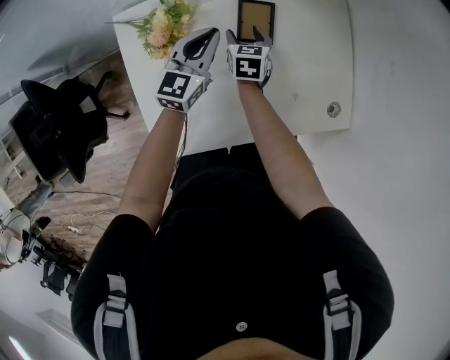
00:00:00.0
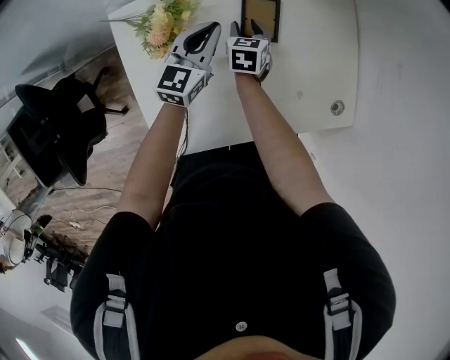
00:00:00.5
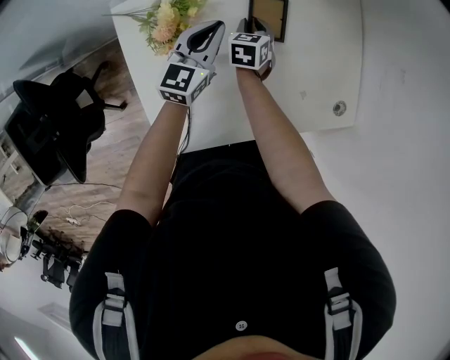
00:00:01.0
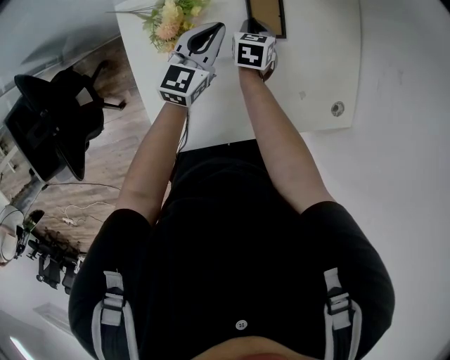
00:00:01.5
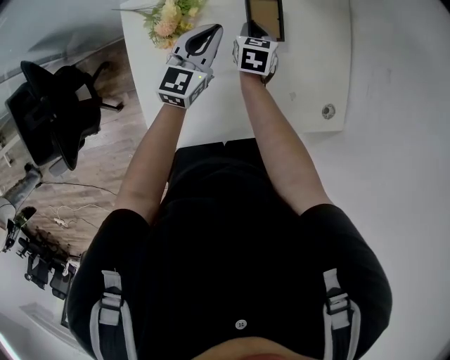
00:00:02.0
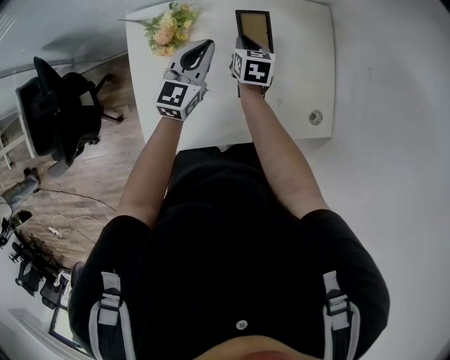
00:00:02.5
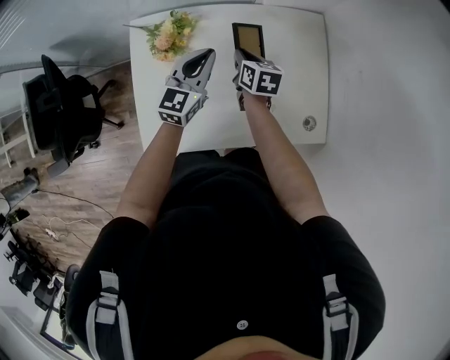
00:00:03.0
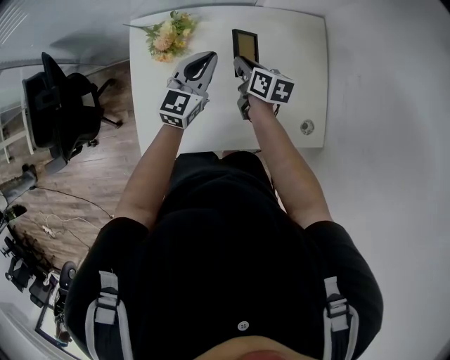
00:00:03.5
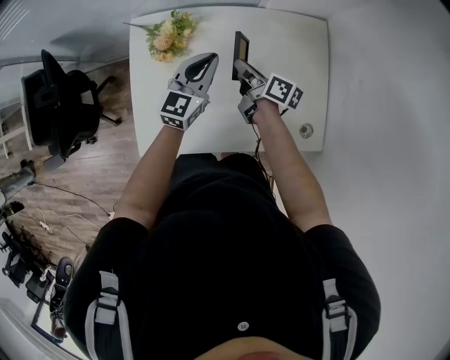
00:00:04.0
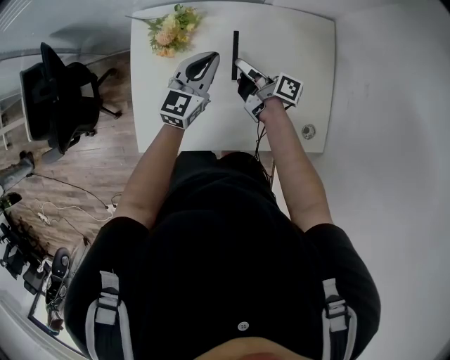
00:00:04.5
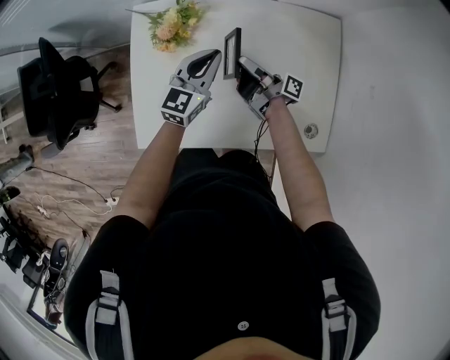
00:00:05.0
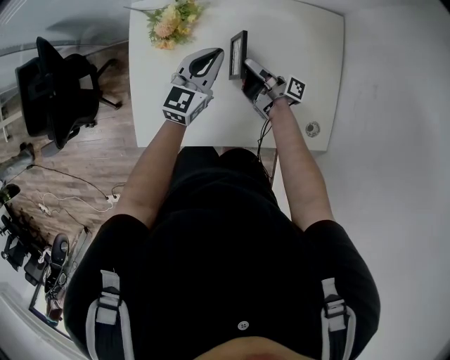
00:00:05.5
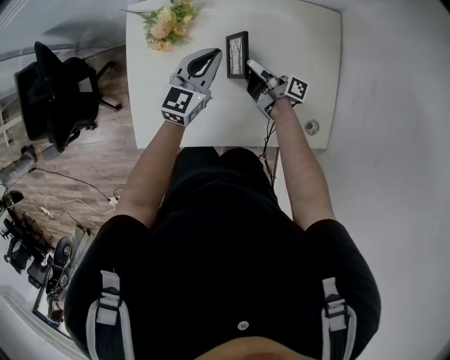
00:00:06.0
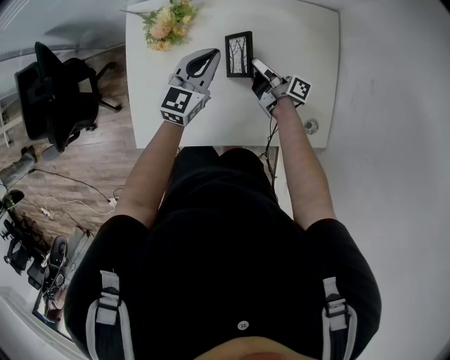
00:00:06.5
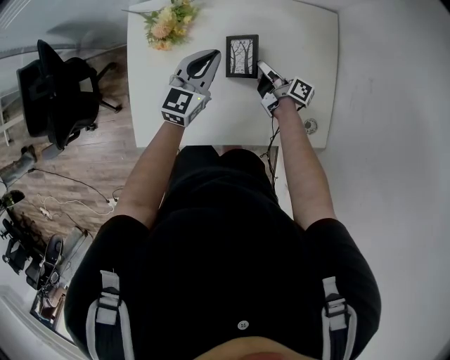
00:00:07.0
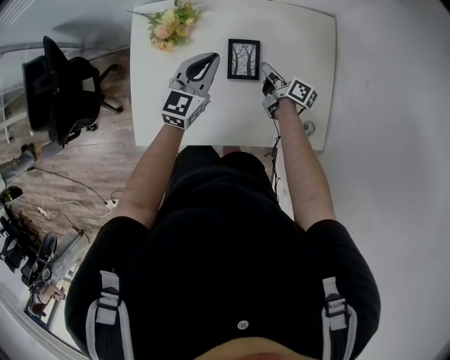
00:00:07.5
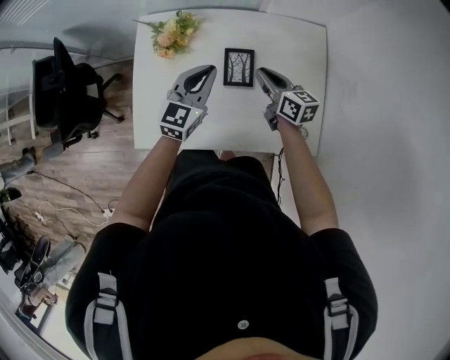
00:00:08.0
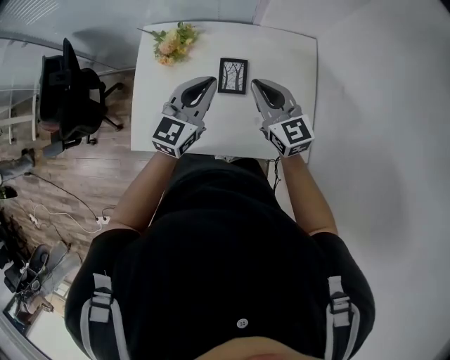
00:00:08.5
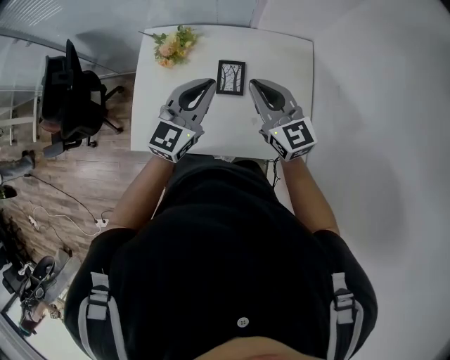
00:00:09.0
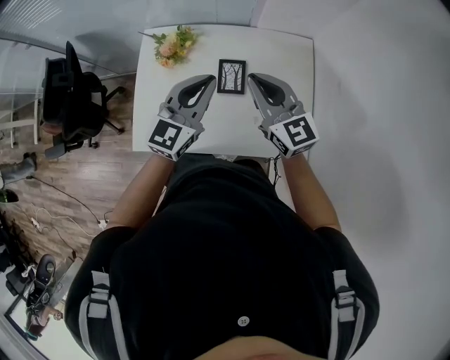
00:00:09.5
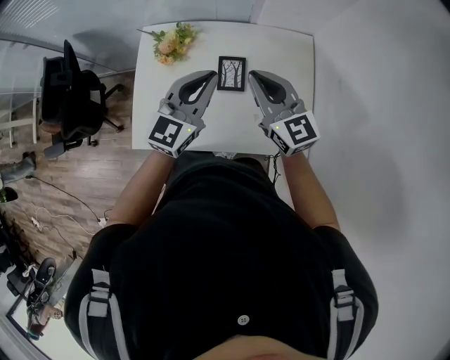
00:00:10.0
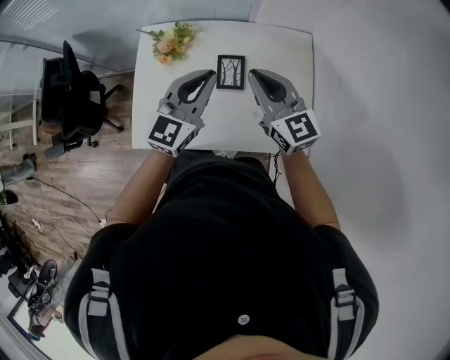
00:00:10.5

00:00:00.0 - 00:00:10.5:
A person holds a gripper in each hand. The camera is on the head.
00:00:00.0 - 00:00:02.0: The right gripper closes its fingers.
00:00:02.0 - 00:00:04.0: The left gripper travels backward by some 5 cm; the right gripper moves upward and backward, about 15 cm, and turns by roughly 60 degrees.
00:00:04.0 - 00:00:06.5: The right gripper shifts approximately 10 cm downward and to the right, and rotates some 20 degrees.
00:00:06.5 - 00:00:08.5: The right gripper heads upward, covering some 25 cm, and rotates around the line of its fingers by approximately 80 degrees, counterclockwise from behind; the left gripper goes approximately 15 cm upward and backward.
00:00:08.5 - 00:00:10.5: Both grippers move upward, roughly 5 cm.

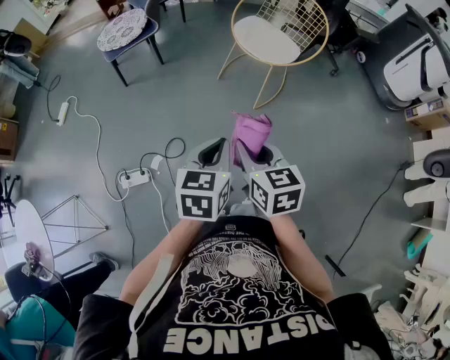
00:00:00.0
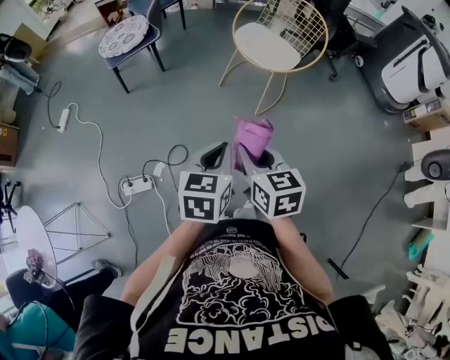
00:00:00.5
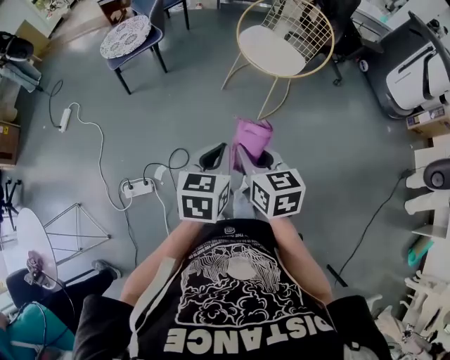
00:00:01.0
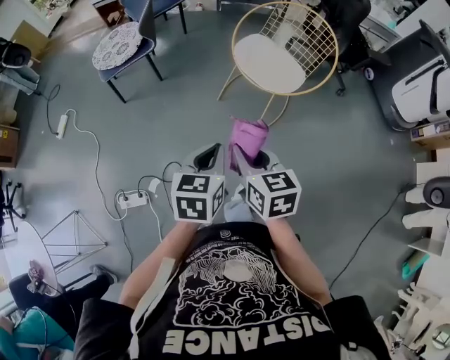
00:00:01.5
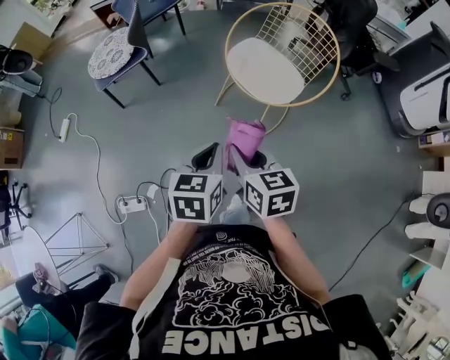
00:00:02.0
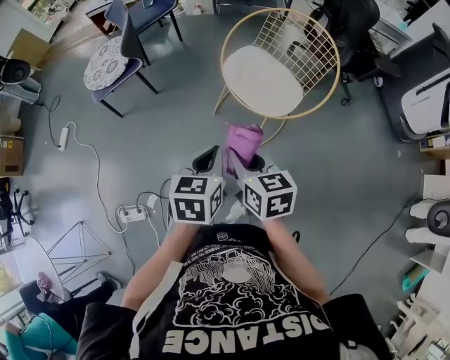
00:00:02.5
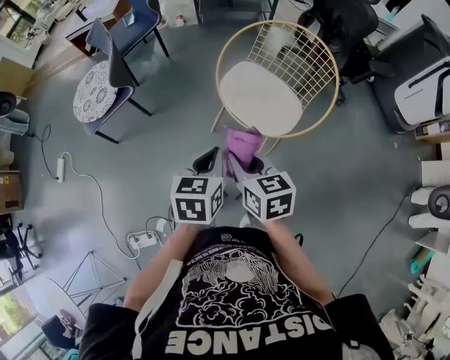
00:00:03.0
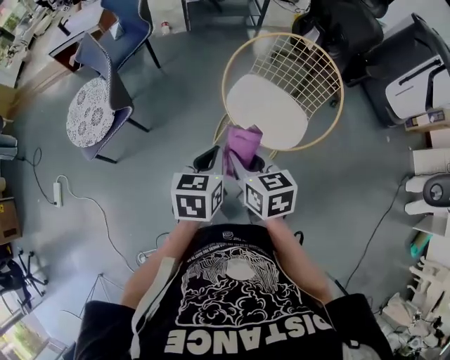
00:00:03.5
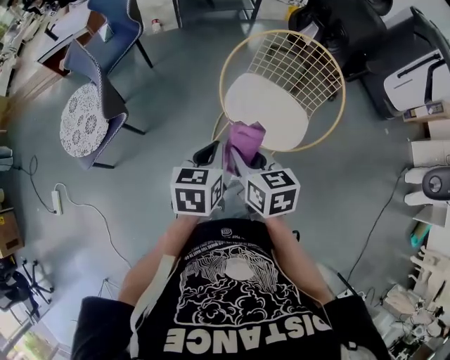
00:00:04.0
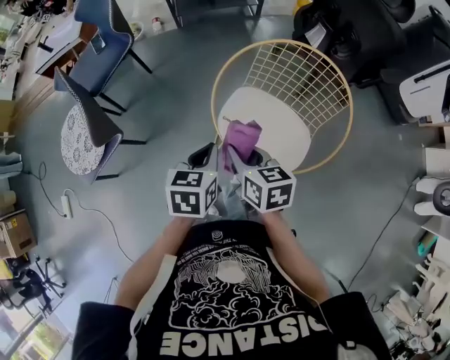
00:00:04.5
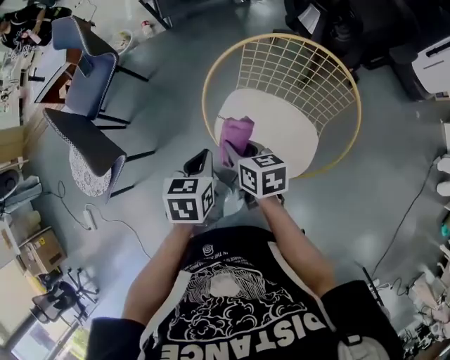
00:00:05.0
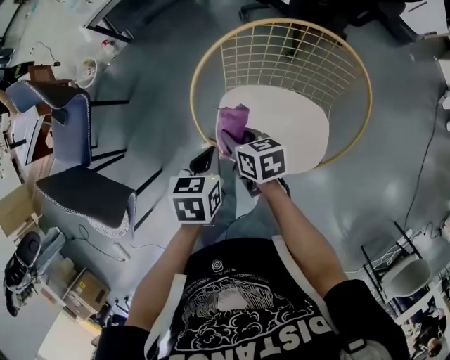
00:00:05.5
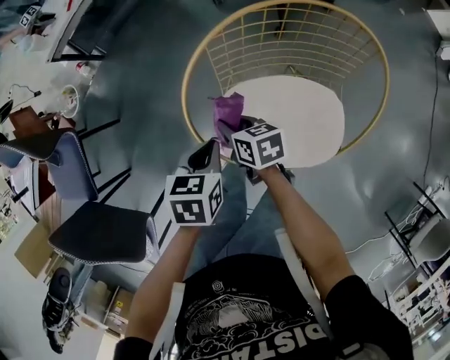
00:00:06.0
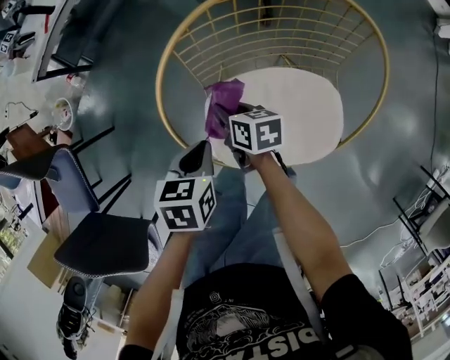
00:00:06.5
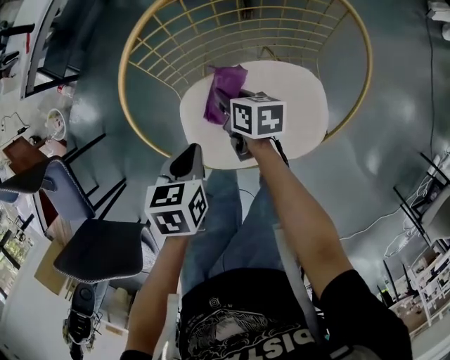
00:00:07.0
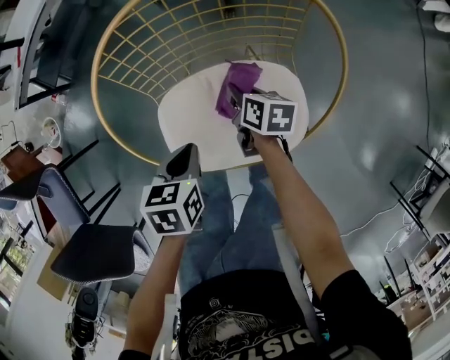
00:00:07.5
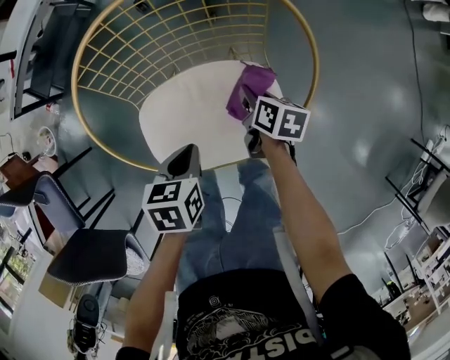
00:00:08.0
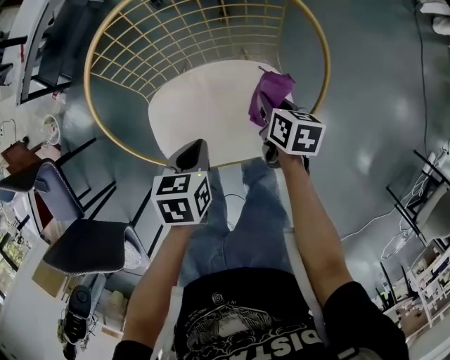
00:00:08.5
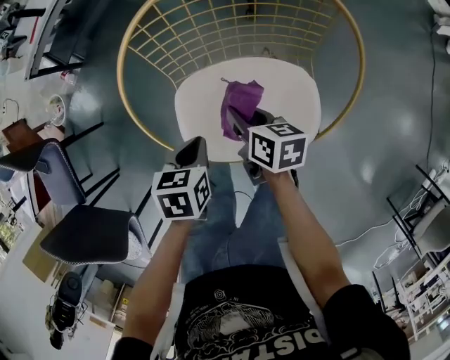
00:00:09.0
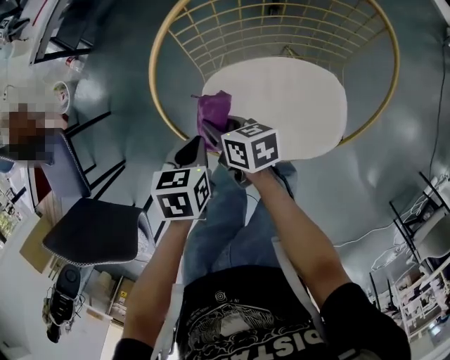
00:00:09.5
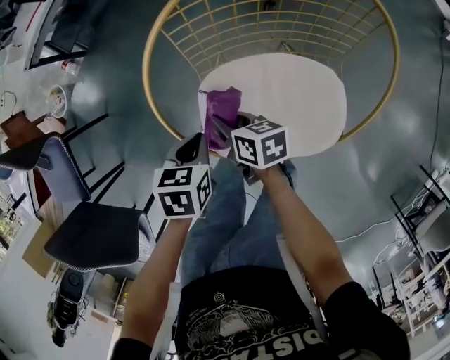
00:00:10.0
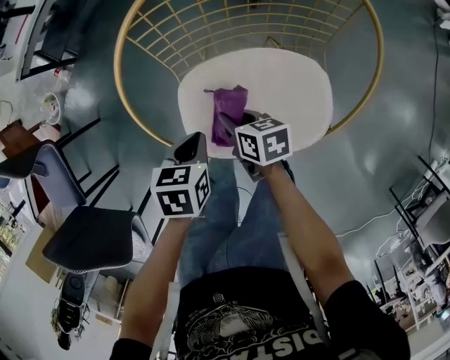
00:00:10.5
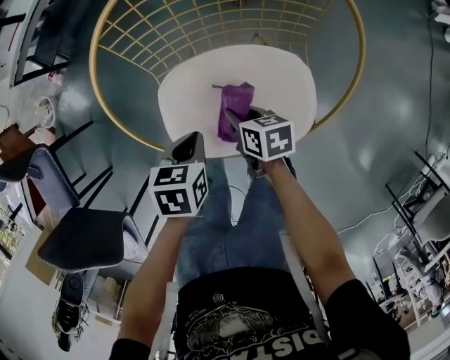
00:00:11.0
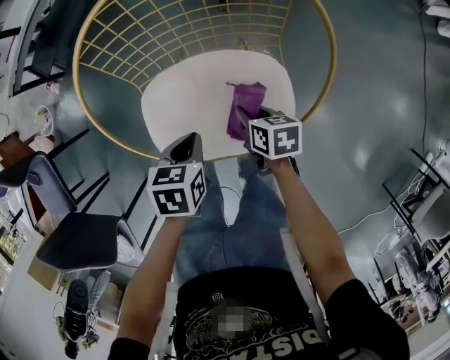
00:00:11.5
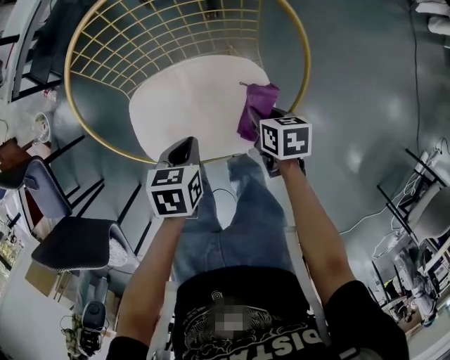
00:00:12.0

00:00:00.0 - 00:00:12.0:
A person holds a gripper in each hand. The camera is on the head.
00:00:00.0 - 00:00:02.0: Both grippers travel together forward, about 25 cm.
00:00:02.0 - 00:00:04.0: Both grippers move forward, some 30 cm.
00:00:04.0 - 00:00:06.0: The right gripper moves about 40 cm, and swivels approximately 40 degrees; the left gripper moves approximately 35 cm, and changes its angle by roughly 40 degrees.
00:00:06.0 - 00:00:08.0: The left gripper moves roughly 15 cm. The right gripper ends up about 30 cm from where it was, and turns by roughly 40 degrees.
00:00:08.0 - 00:00:10.0: The right gripper moves about 25 cm, and rotates roughly 30 degrees; the left gripper changes place by approximately 15 cm.
00:00:10.0 - 00:00:12.0: The right gripper travels to the right by about 30 cm, and swivels some 20 degrees; the left gripper moves to the right, roughly 15 cm.

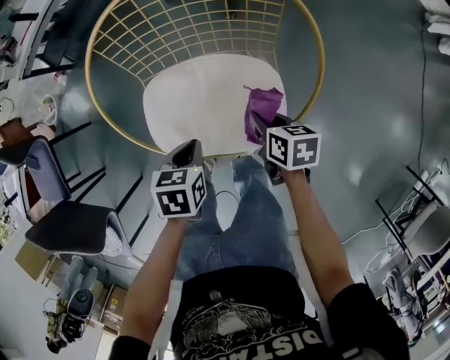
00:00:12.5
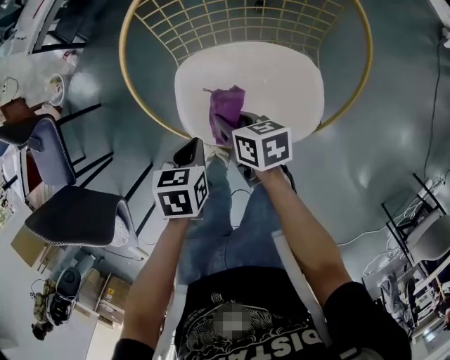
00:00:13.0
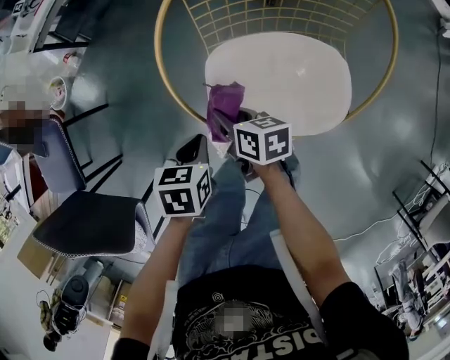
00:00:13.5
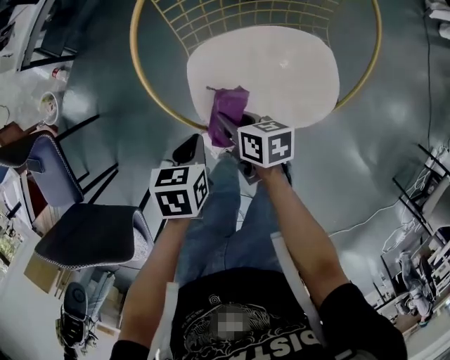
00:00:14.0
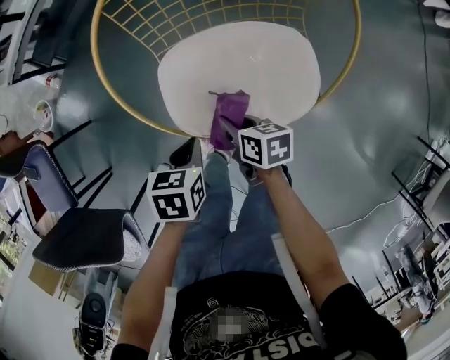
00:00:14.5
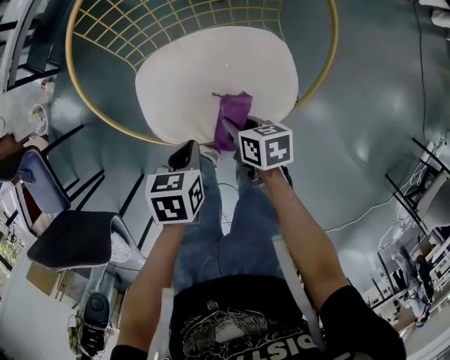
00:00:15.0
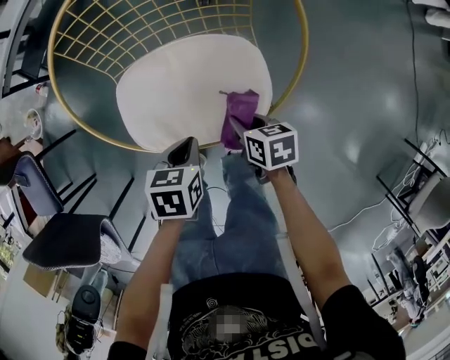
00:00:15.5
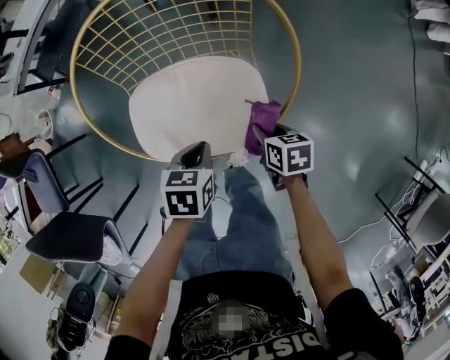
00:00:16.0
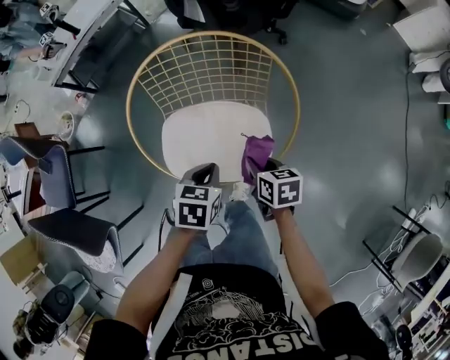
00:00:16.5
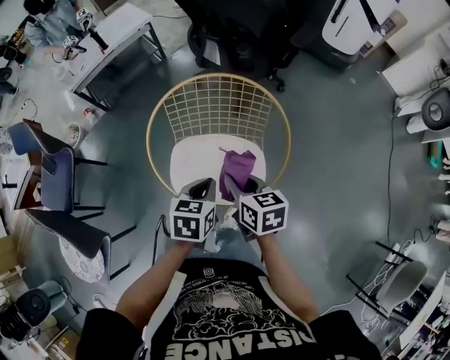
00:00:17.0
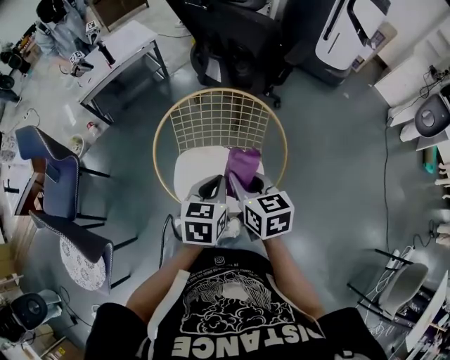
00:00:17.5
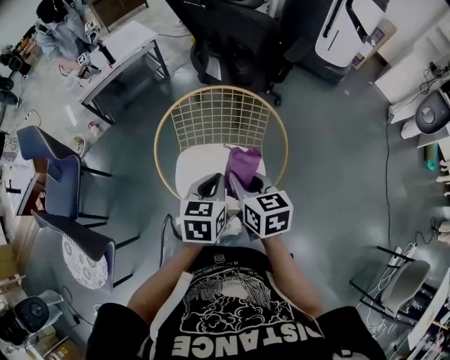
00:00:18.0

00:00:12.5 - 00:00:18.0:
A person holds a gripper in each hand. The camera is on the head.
00:00:12.5 - 00:00:14.5: The left gripper goes roughly 10 cm to the left; the right gripper travels to the left by some 20 cm.
00:00:14.5 - 00:00:16.0: Both grippers move to the right, approximately 20 cm.
00:00:16.0 - 00:00:18.0: Both grippers move upward, roughly 30 cm. The right gripper rotates roughly 30 degrees. The left gripper rotates some 30 degrees.
